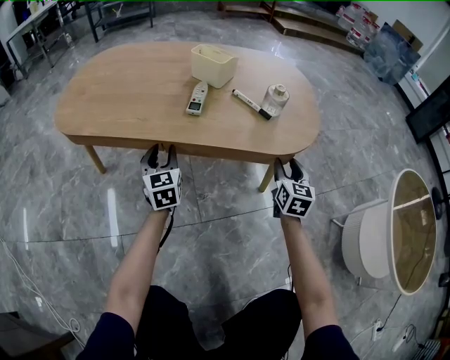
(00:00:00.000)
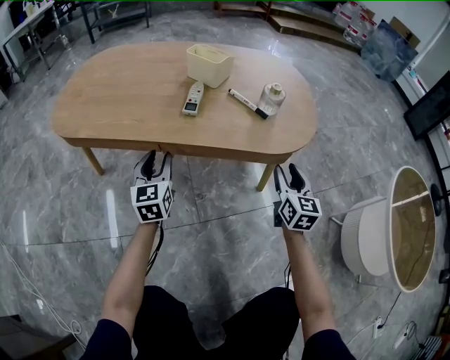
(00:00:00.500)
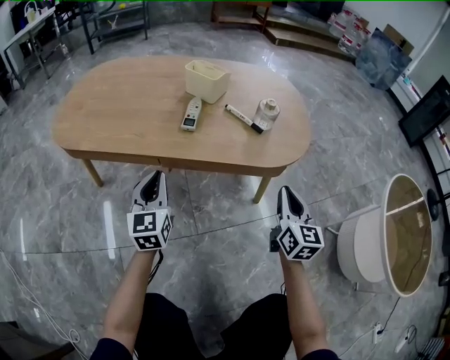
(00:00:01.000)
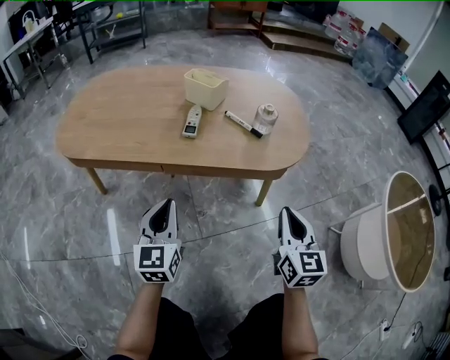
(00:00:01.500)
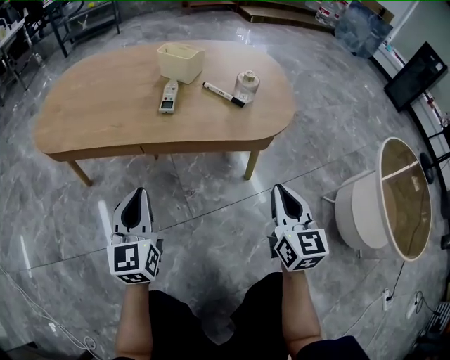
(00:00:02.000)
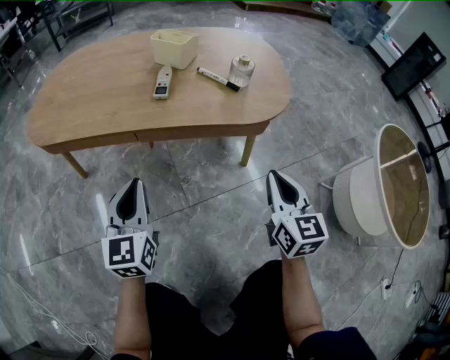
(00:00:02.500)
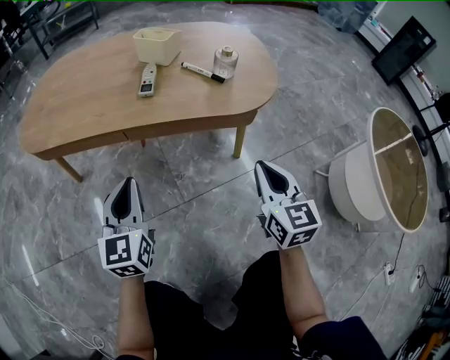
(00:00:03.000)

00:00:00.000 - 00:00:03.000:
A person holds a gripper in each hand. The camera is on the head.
00:00:00.000 - 00:00:01.500: The grippers both shift backward and upward by some 15 cm. The left gripper closes up; the right gripper closes its fingers.
00:00:01.500 - 00:00:03.000: The grippers make only small movements.

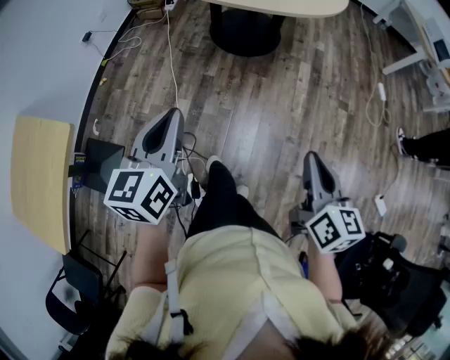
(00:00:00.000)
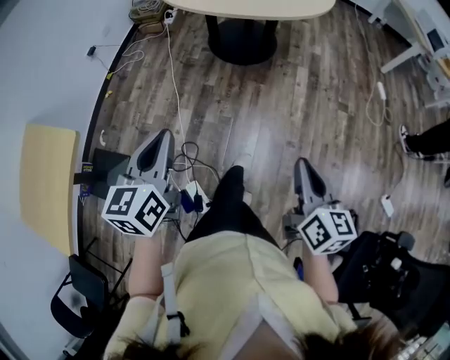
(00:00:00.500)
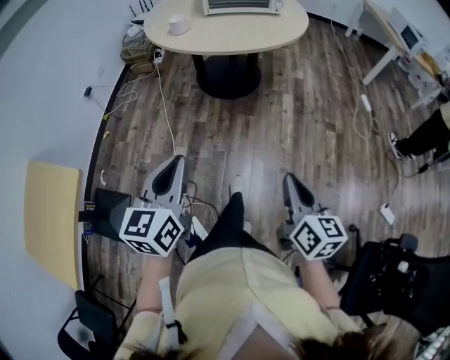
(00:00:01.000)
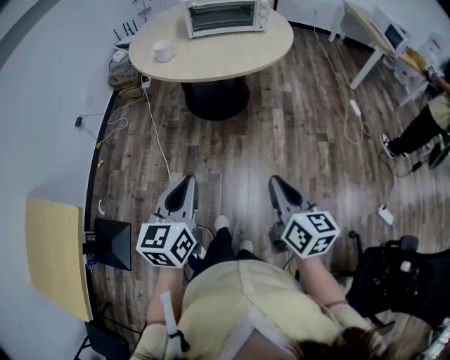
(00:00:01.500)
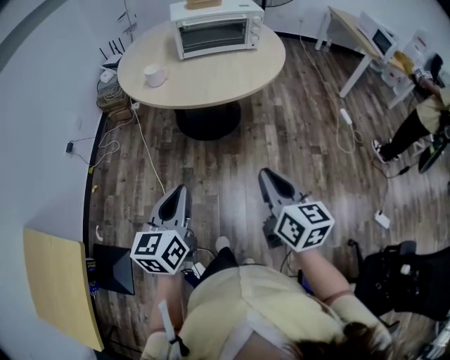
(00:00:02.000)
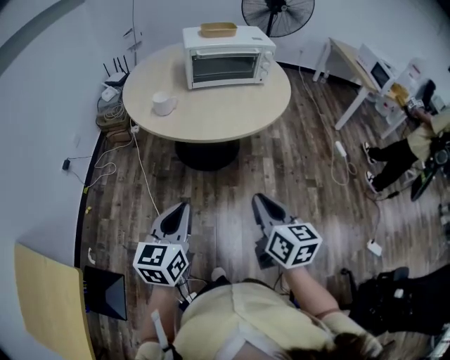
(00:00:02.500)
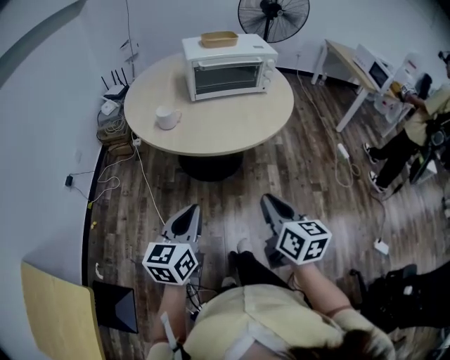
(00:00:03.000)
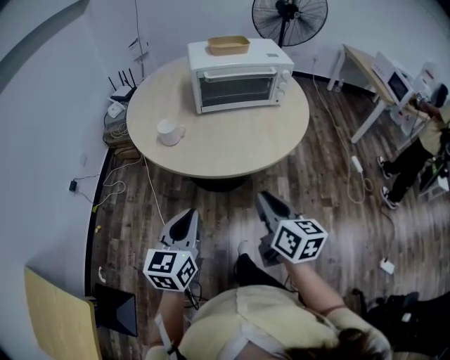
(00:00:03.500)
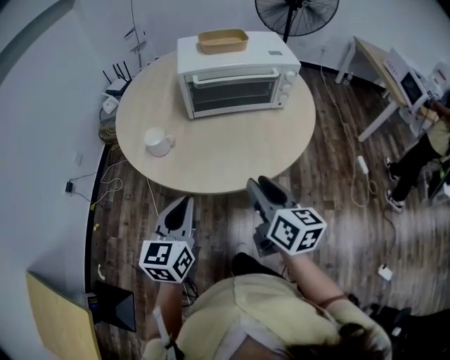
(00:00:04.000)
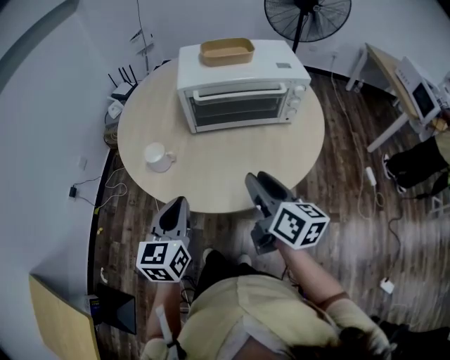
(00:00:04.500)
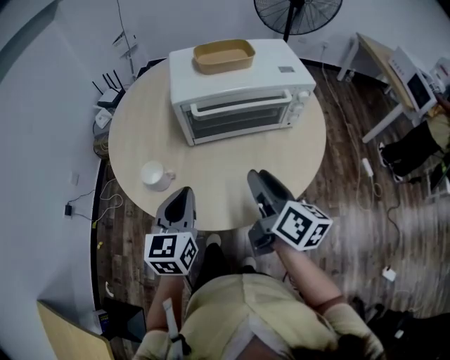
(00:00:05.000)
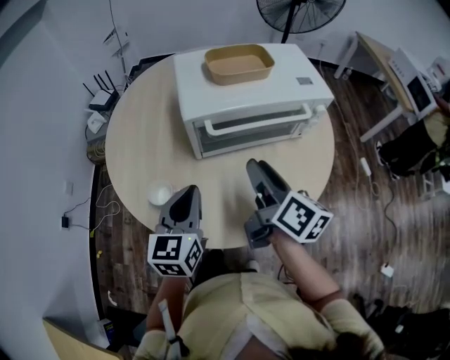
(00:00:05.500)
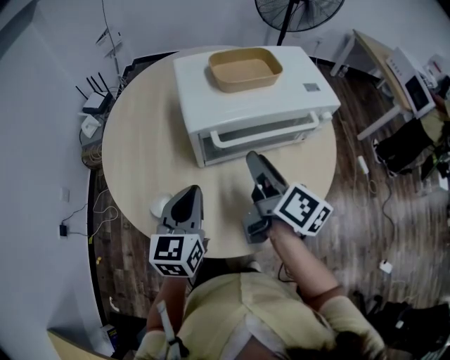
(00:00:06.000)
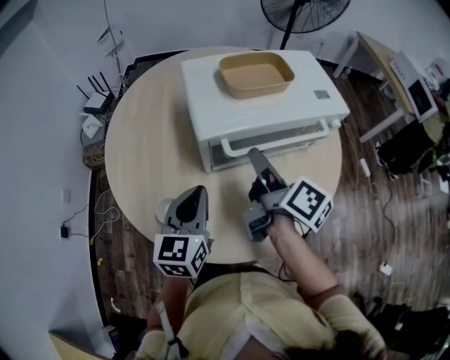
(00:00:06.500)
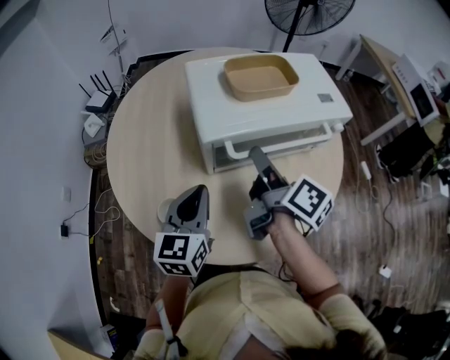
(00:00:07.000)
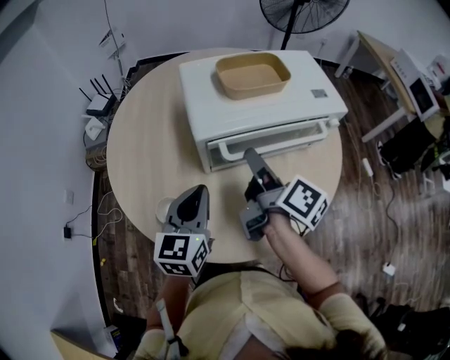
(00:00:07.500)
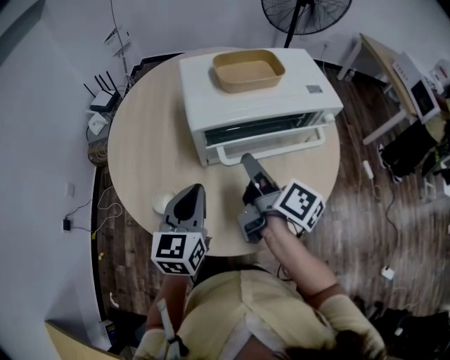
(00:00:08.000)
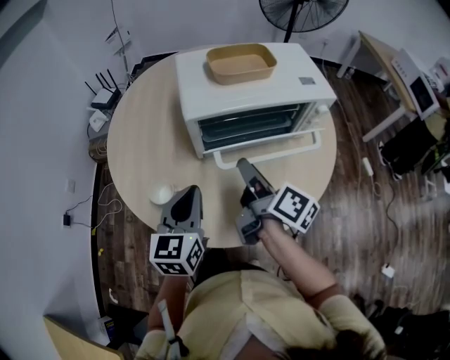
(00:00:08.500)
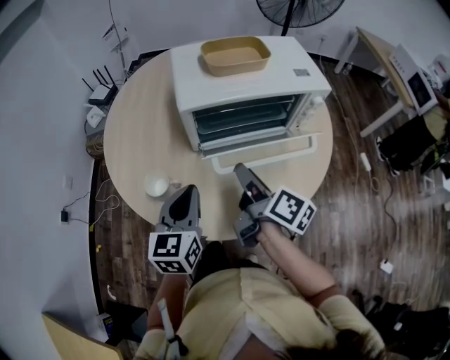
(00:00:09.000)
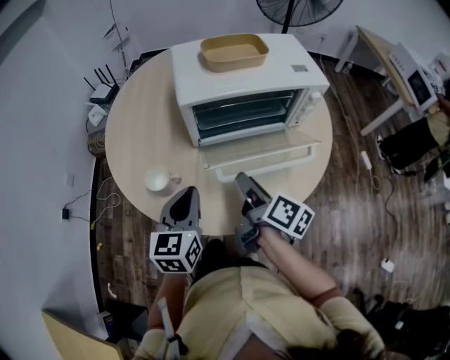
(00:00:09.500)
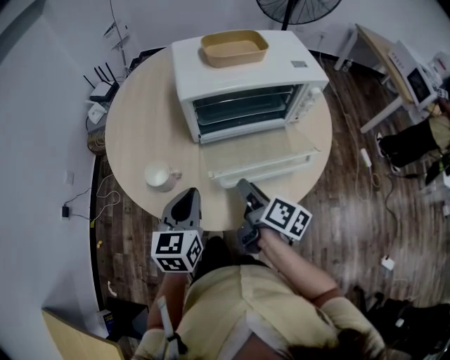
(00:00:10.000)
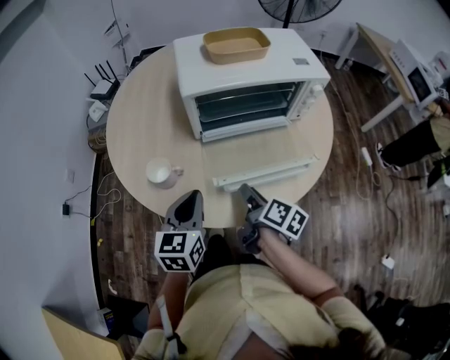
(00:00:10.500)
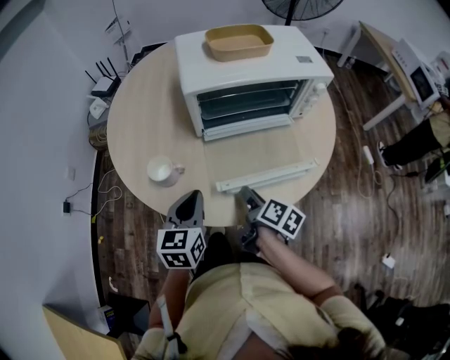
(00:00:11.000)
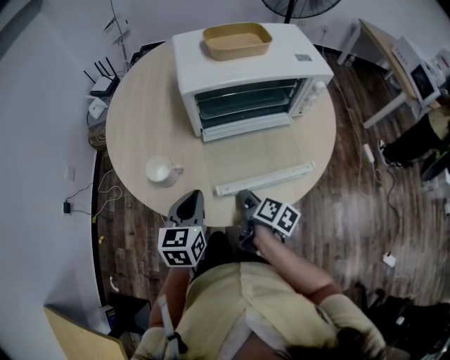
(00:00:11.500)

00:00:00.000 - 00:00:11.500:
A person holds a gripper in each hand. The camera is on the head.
00:00:00.000 - 00:00:02.000: The right gripper heads forward, covering some 15 cm. The left gripper shifts approximately 15 cm forward and to the right.
00:00:02.000 - 00:00:04.000: Both grippers move forward, some 35 cm. The right gripper opens up.
00:00:04.000 - 00:00:06.000: The two grippers go approximately 25 cm forward. The right gripper rotates approximately 30 degrees.
00:00:06.000 - 00:00:07.500: The grippers make only small movements.
00:00:07.500 - 00:00:09.500: The left gripper moves backward, about 10 cm; the right gripper heads backward and downward, covering about 15 cm.
00:00:09.500 - 00:00:11.500: The right gripper shifts some 15 cm downward. Meanwhile the left gripper travels downward by roughly 5 cm.

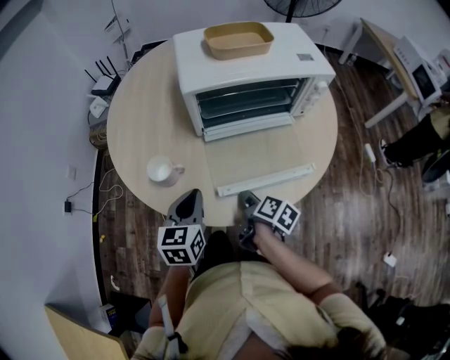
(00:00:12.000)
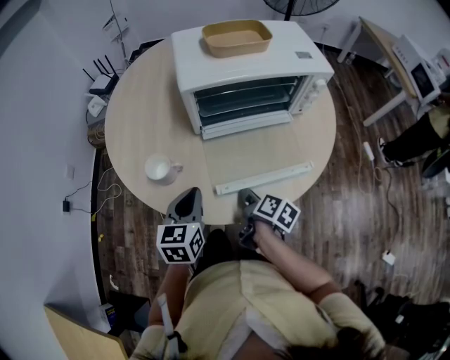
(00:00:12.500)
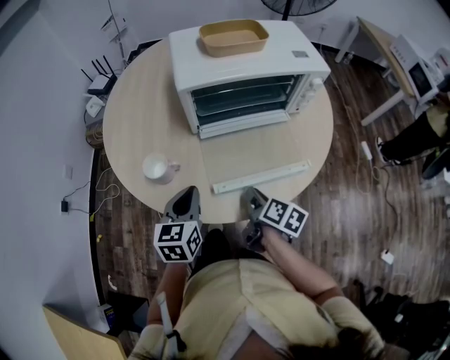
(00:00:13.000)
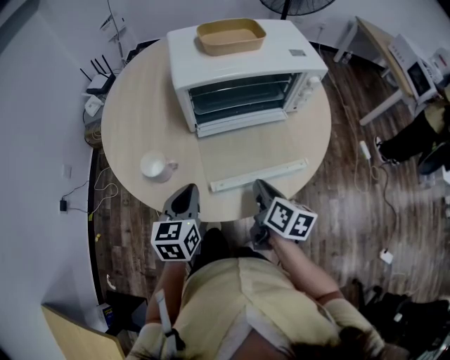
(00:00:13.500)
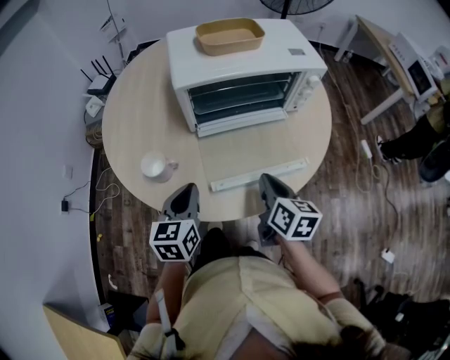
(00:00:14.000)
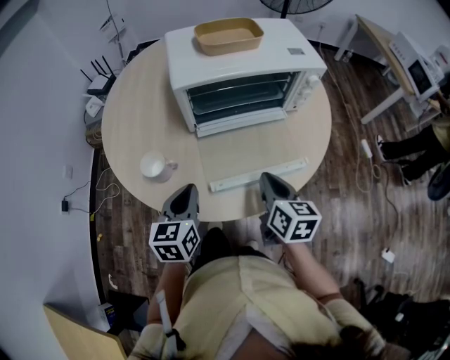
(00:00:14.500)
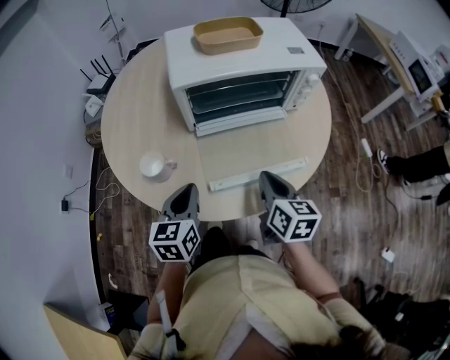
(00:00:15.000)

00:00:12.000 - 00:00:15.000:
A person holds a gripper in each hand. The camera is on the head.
00:00:12.000 - 00:00:13.500: The right gripper is displaced upward by roughly 10 cm, and rotates roughly 20 degrees.
00:00:13.500 - 00:00:15.000: The grippers make only small movements.

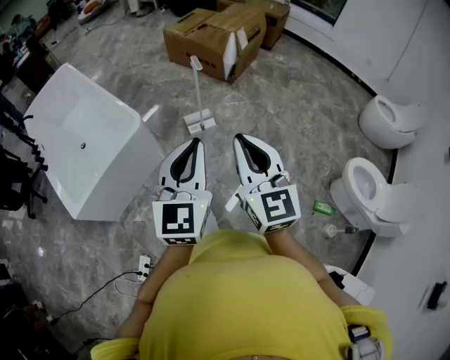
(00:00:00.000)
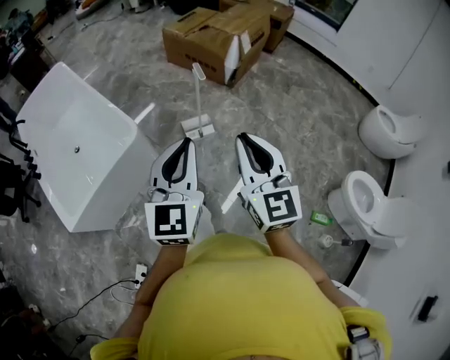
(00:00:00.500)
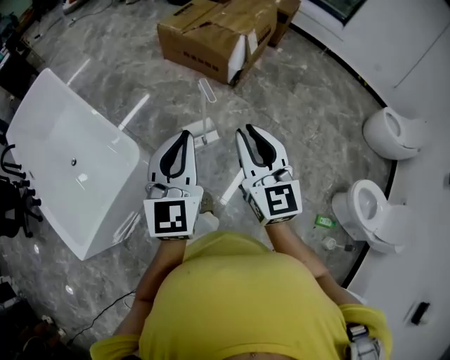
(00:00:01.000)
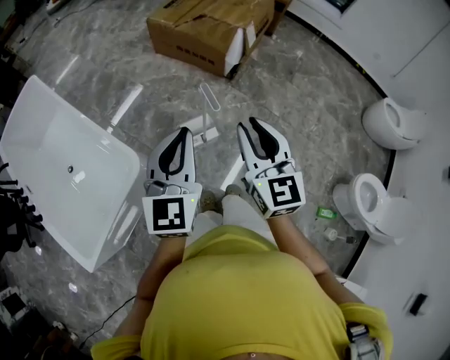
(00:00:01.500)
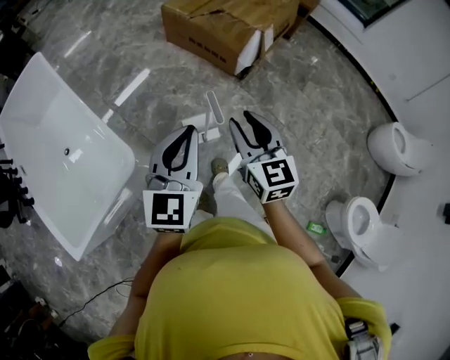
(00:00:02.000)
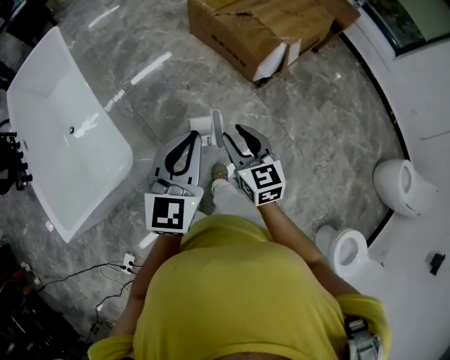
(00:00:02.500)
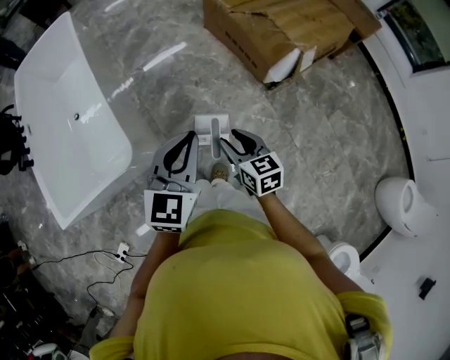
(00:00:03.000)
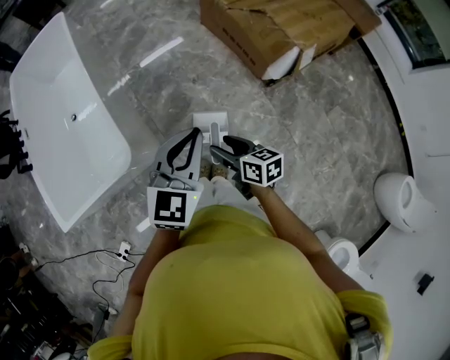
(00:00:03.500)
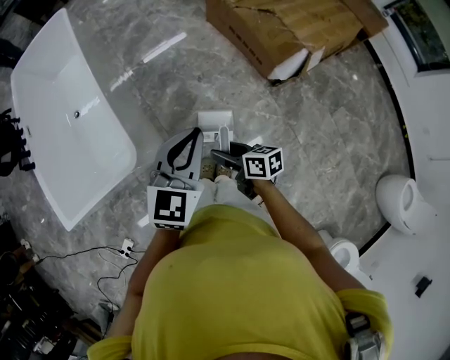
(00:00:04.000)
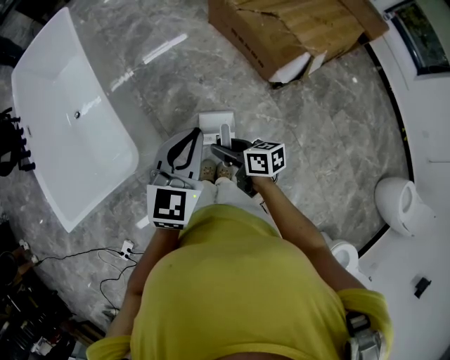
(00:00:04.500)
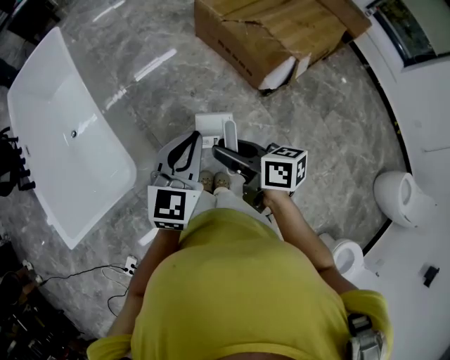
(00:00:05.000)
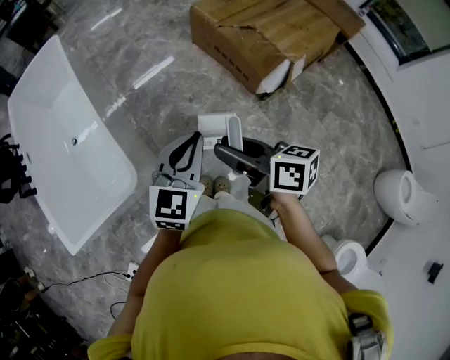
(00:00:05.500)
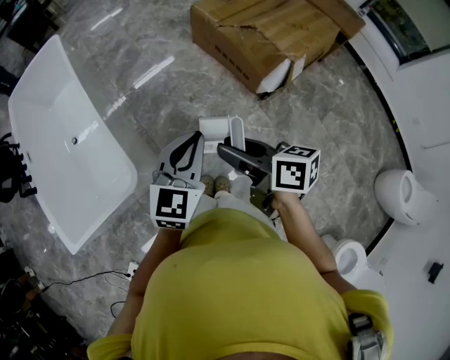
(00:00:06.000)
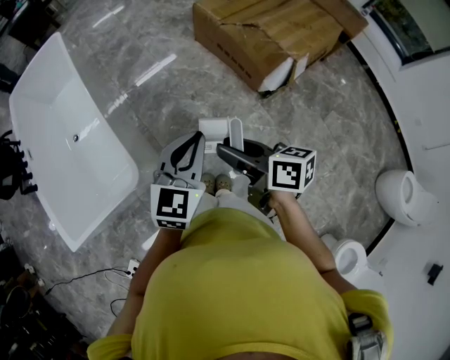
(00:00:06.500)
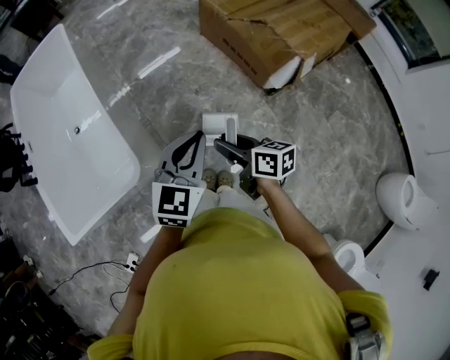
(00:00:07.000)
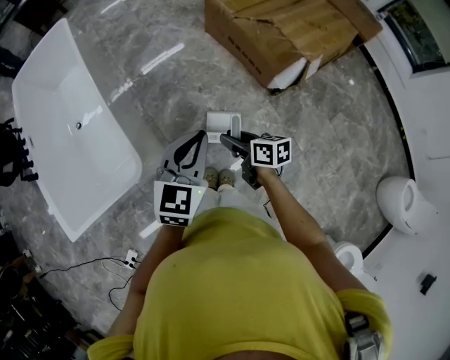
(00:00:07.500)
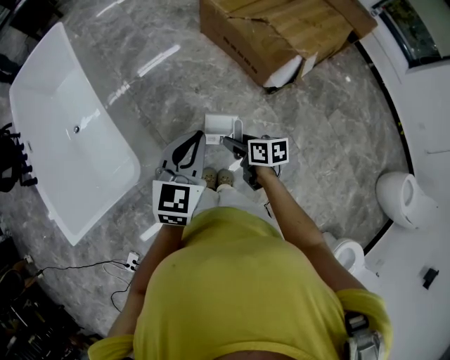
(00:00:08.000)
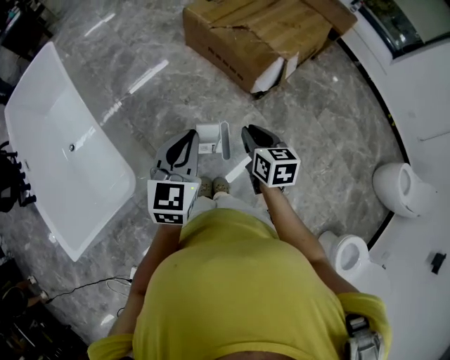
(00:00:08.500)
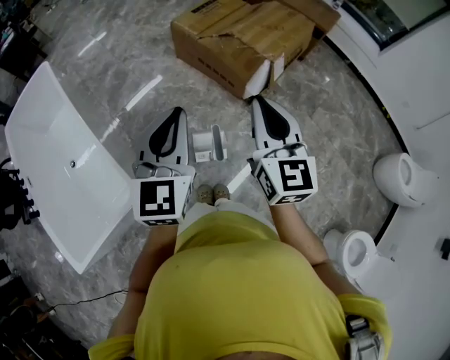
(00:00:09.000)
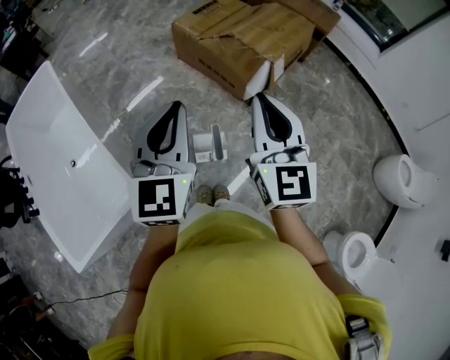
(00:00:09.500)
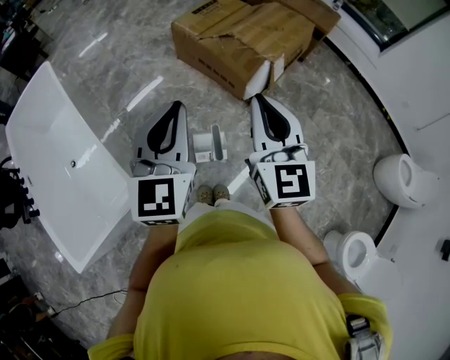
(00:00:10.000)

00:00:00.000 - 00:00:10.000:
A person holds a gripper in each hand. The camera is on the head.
00:00:00.000 - 00:00:02.000: Both grippers are carried forward, roughly 50 cm. The right gripper opens up.
00:00:02.000 - 00:00:04.000: The right gripper shifts roughly 20 cm downward, and turns by roughly 70 degrees; the left gripper shifts by roughly 15 cm.
00:00:04.000 - 00:00:06.000: The right gripper goes approximately 20 cm upward.
00:00:06.000 - 00:00:08.000: The right gripper travels downward by roughly 20 cm, and rotates roughly 20 degrees.
00:00:08.000 - 00:00:10.000: The right gripper moves upward, approximately 35 cm, tips its fingers upward by some 30 degrees, and closes; the left gripper travels upward by some 15 cm.
